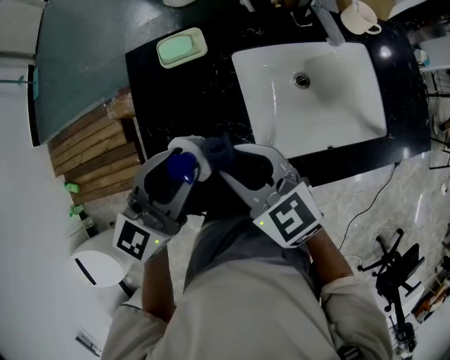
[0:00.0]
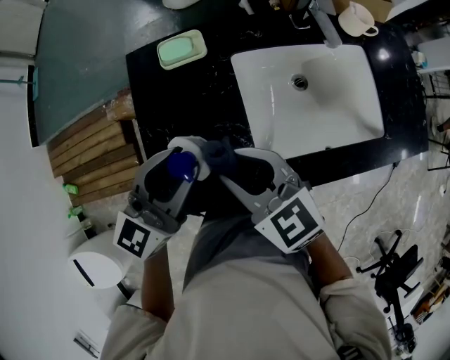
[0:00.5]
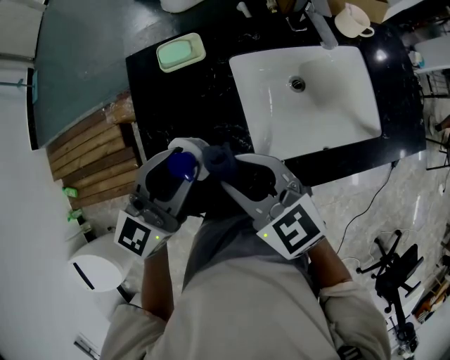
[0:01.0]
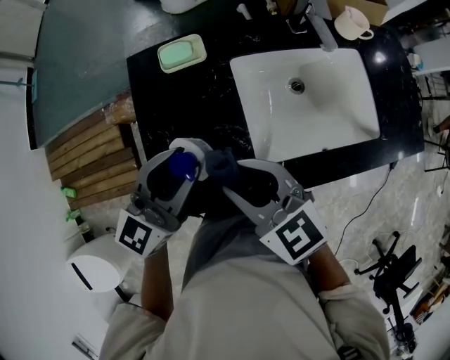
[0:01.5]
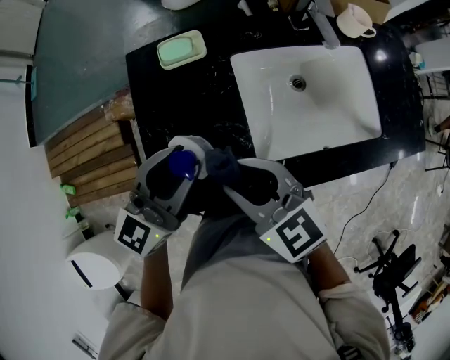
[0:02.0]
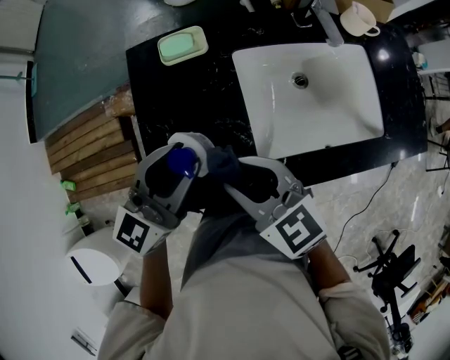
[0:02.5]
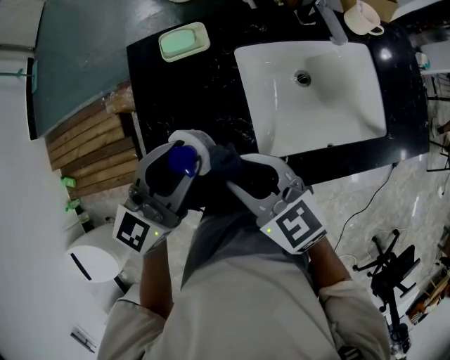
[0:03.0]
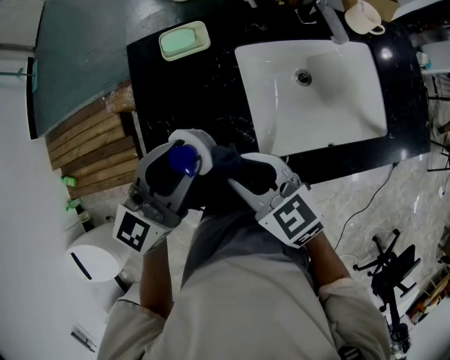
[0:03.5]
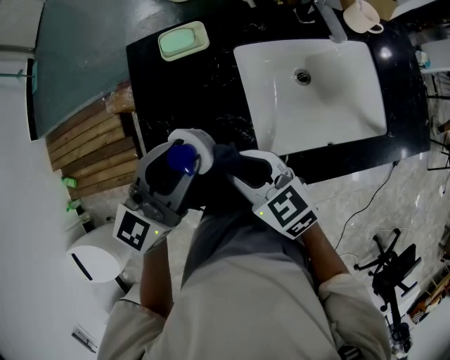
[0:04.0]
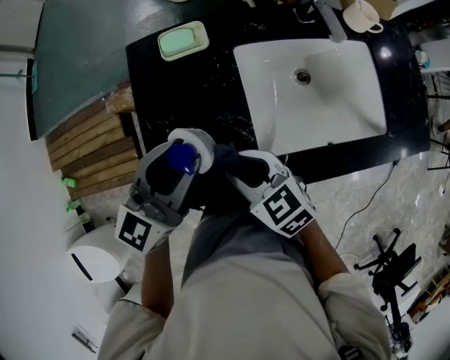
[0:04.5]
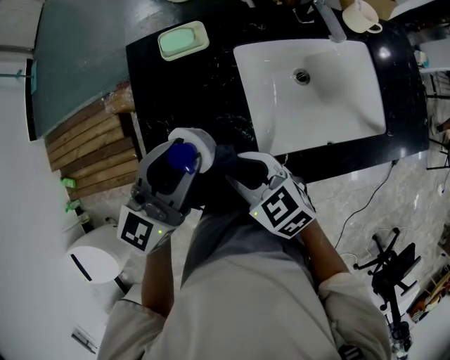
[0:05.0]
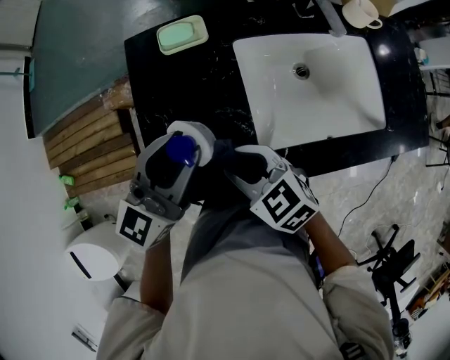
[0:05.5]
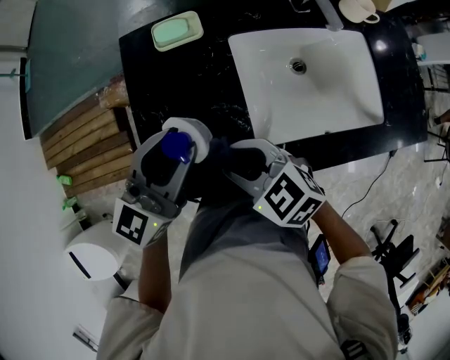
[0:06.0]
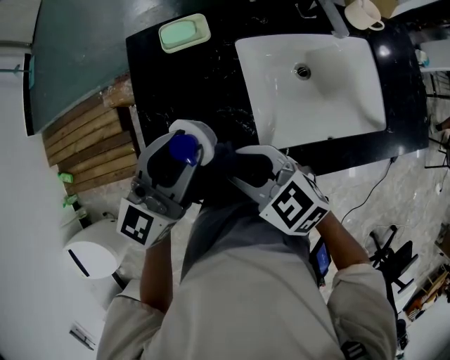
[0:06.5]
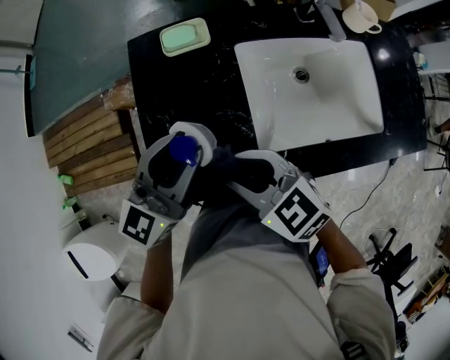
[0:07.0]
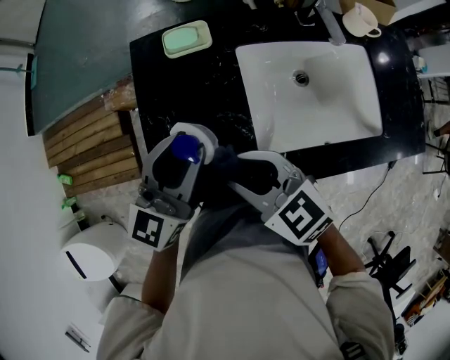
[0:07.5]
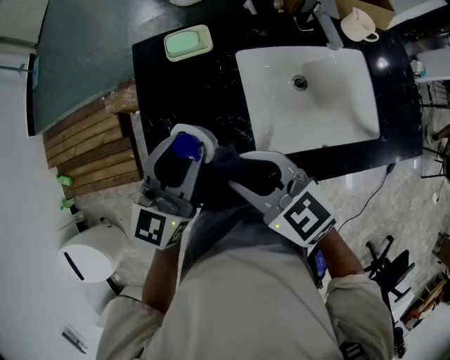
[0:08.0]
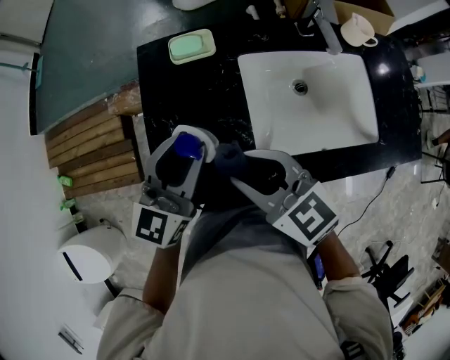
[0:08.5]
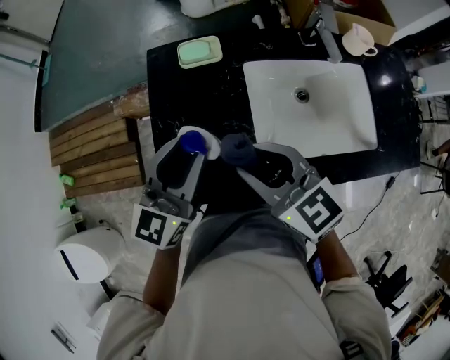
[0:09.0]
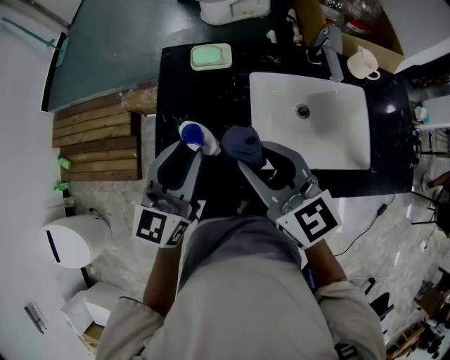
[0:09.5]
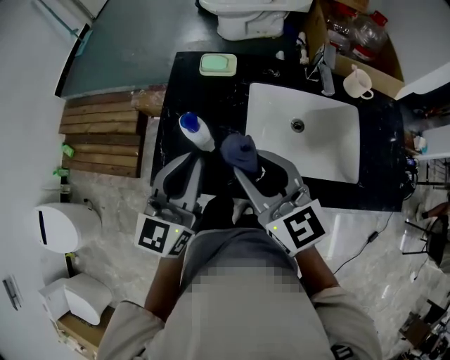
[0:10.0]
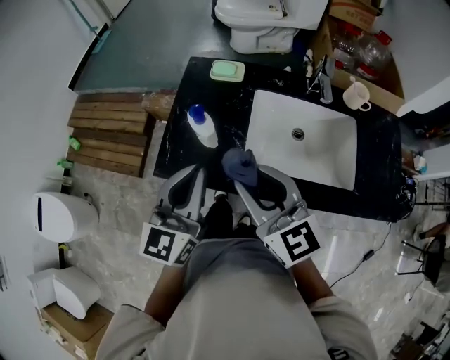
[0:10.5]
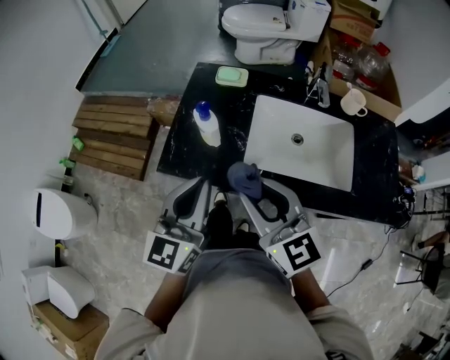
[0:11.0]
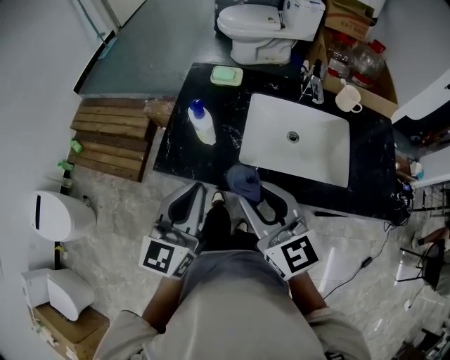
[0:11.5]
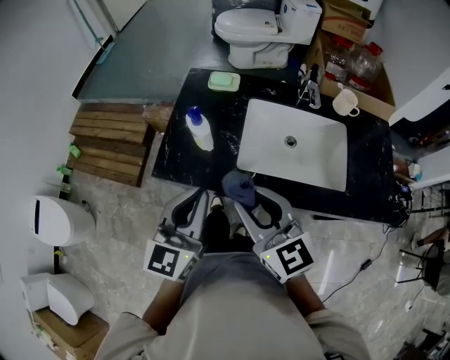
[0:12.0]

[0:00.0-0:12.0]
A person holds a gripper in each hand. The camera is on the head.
0:00.0 to 0:02.0: The grippers make only small movements.
0:02.0 to 0:04.0: The right gripper heads downward, covering approximately 10 cm.
0:04.0 to 0:06.0: There are only small adjustments of the grippers.
0:06.0 to 0:08.0: The right gripper goes about 5 cm upward.
0:08.0 to 0:10.0: The left gripper is displaced backward and upward by some 10 cm, and closes. Meanwhile the right gripper travels upward and to the right by roughly 10 cm, and rotates roughly 20 degrees.
0:10.0 to 0:12.0: The two grippers go about 10 cm backward.

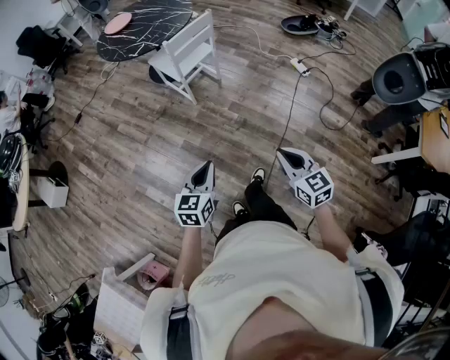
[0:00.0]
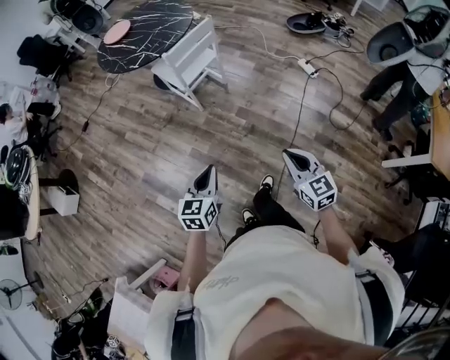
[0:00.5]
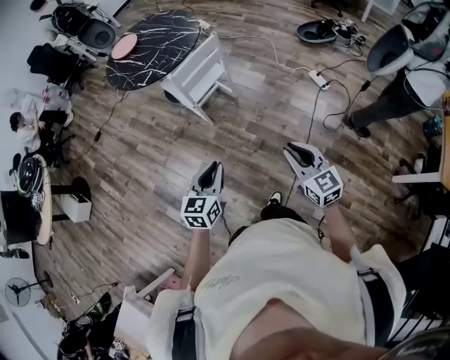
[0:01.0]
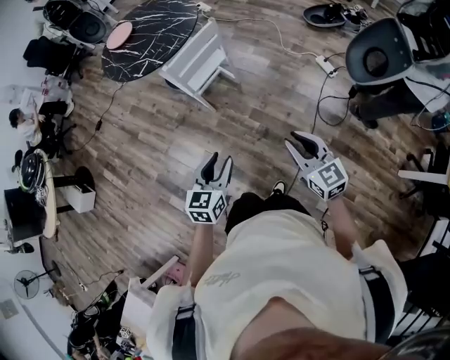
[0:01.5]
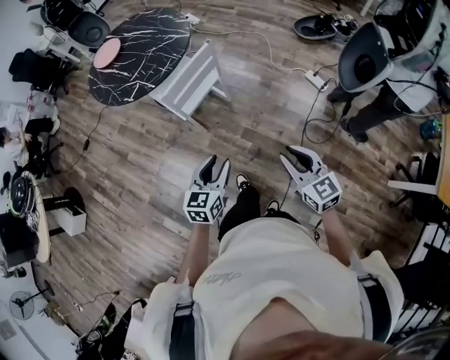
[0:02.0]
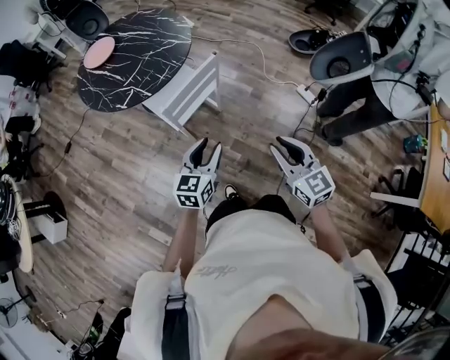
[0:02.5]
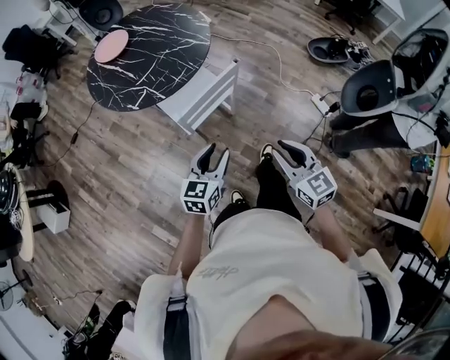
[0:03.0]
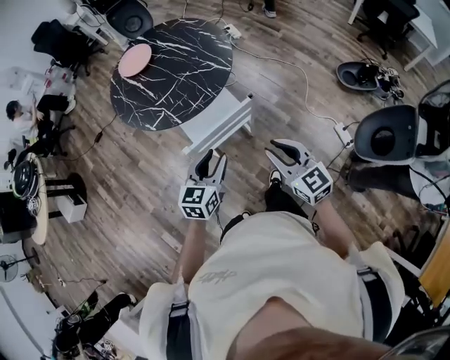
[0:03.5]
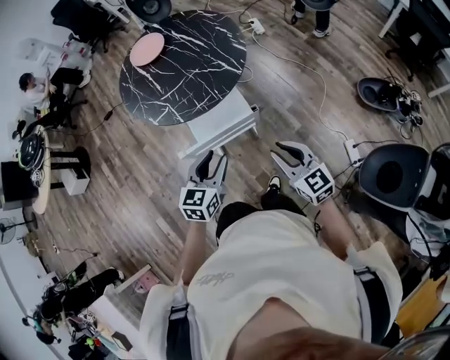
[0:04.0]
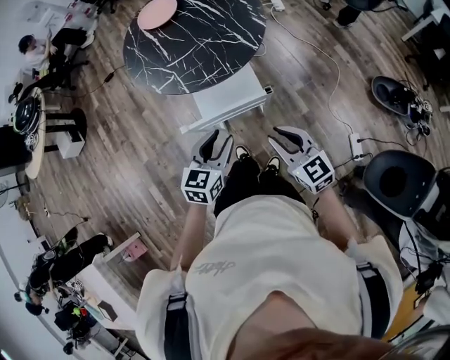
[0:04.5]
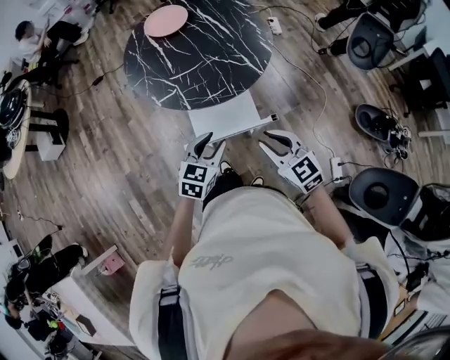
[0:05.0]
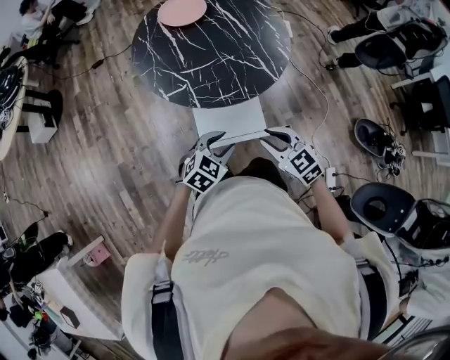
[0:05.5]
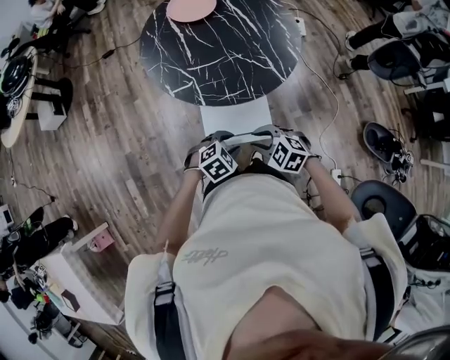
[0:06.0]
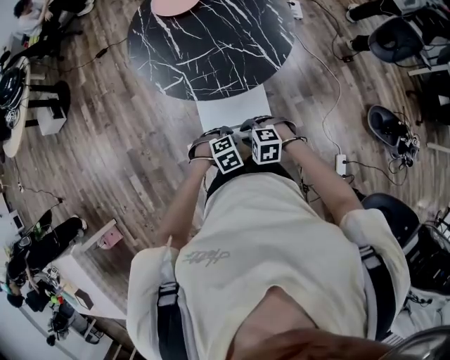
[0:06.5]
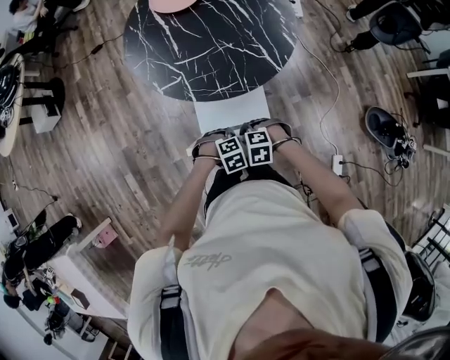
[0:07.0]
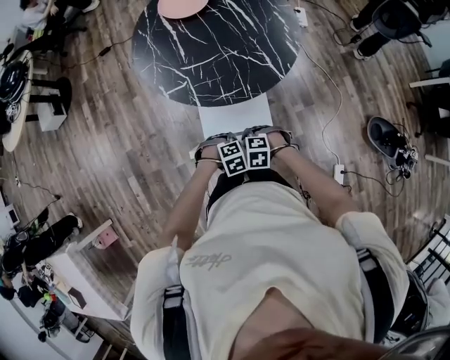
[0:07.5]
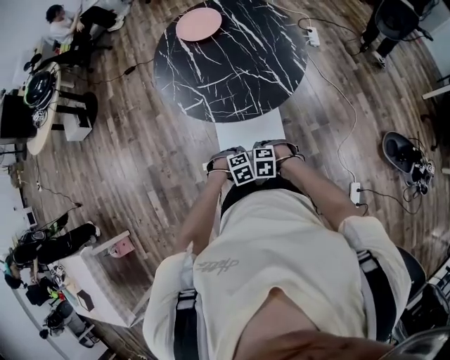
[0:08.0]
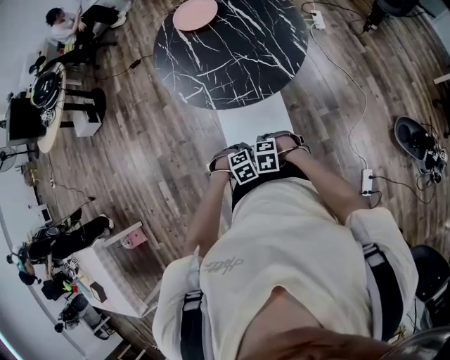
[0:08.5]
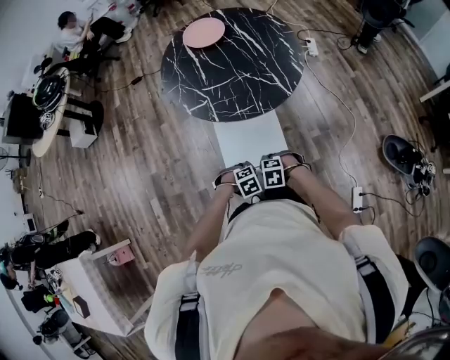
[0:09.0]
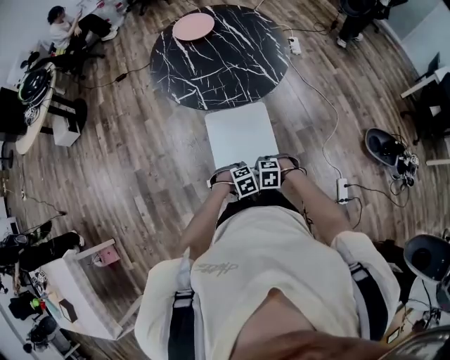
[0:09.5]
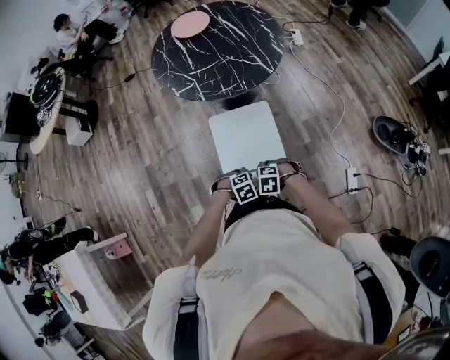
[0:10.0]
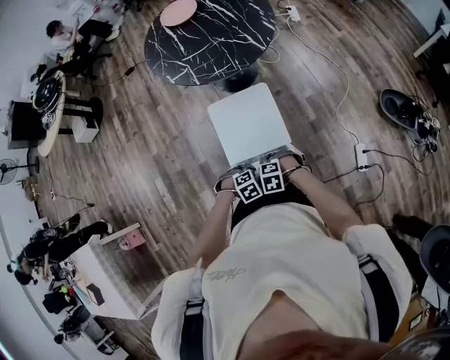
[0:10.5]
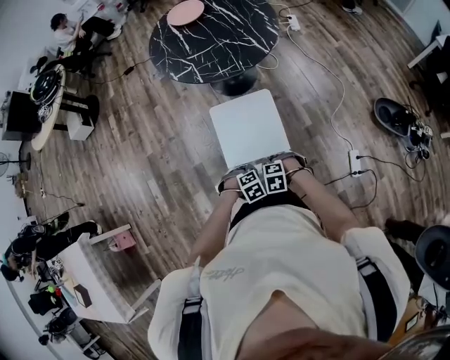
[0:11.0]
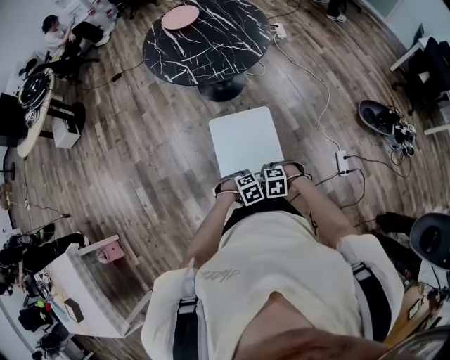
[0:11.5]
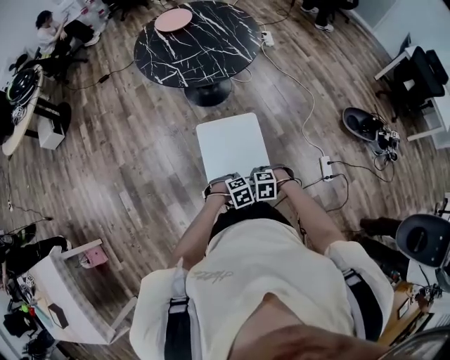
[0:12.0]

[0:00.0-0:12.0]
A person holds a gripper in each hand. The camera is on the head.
0:00.0 to 0:02.0: Both grippers move forward, roughly 30 cm. The left gripper opens up.
0:02.0 to 0:04.0: The right gripper ends up some 40 cm from where it was, and changes its angle by roughly 30 degrees. The left gripper shifts by roughly 35 cm, and rotates roughly 20 degrees.
0:04.0 to 0:06.0: The right gripper moves about 25 cm, and points its fingers about 30 degrees further downward; the left gripper moves downward, roughly 15 cm, and tilts its fingers roughly 30 degrees downward.
0:06.0 to 0:08.0: Both grippers travel together downward, some 10 cm. The left gripper swivels roughly 20 degrees, and closes its fingers. Meanwhile the right gripper swivels some 30 degrees.
0:08.0 to 0:10.0: The right gripper shifts by some 25 cm. The left gripper ends up approximately 25 cm from where it was.
0:10.0 to 0:12.0: The left gripper ends up some 15 cm from where it was, while the right gripper changes place by about 15 cm.

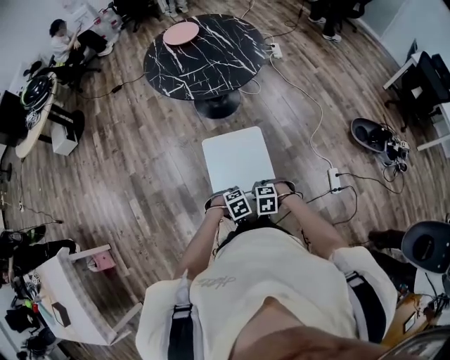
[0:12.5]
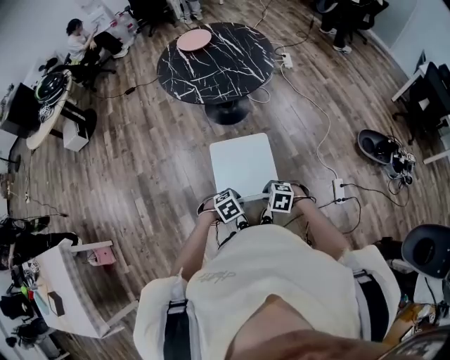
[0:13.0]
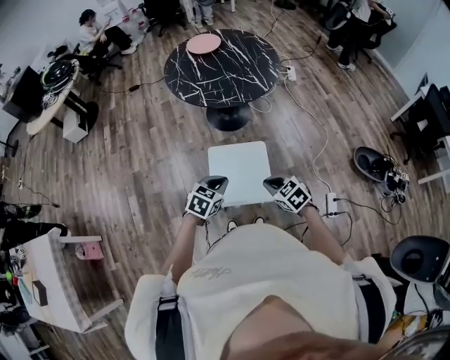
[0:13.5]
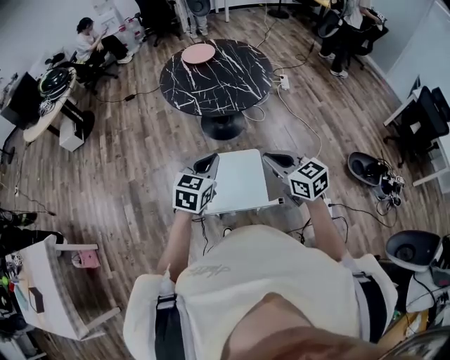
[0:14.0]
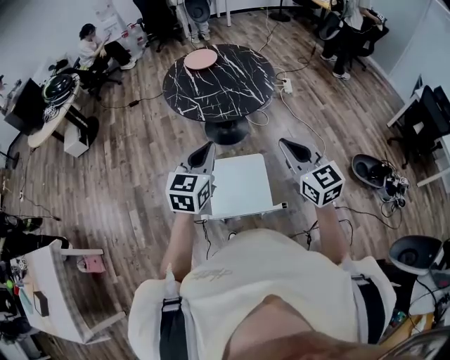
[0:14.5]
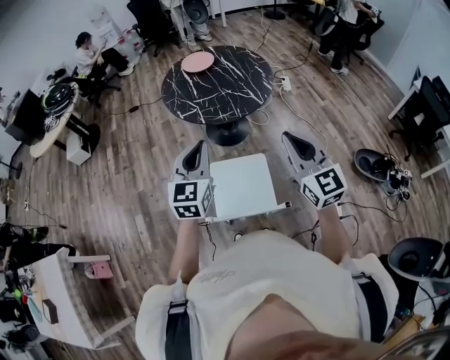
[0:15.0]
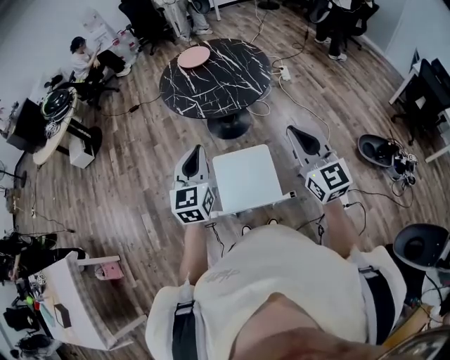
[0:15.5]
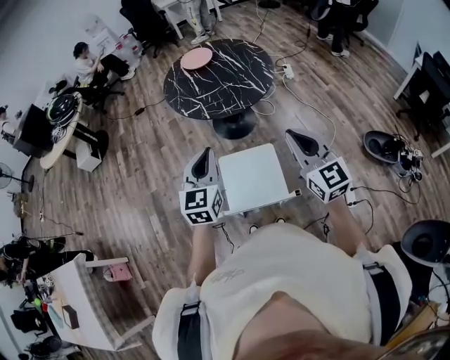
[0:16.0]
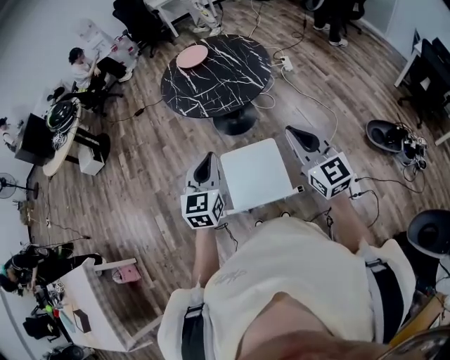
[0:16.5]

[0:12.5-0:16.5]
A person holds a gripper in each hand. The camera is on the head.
0:12.5 to 0:14.5: The grippers both shift upward by some 40 cm. The left gripper tips its fingers upward by about 60 degrees; the right gripper points its fingers approximately 60 degrees further upward, and closes up.
0:14.5 to 0:16.5: The grippers make only small movements.
